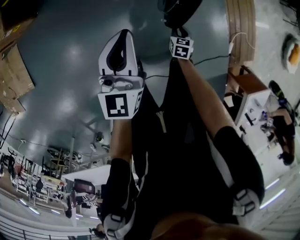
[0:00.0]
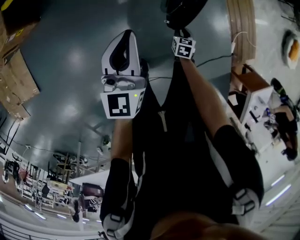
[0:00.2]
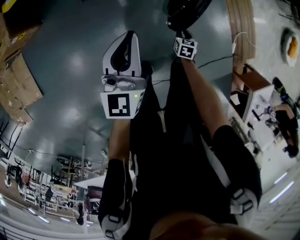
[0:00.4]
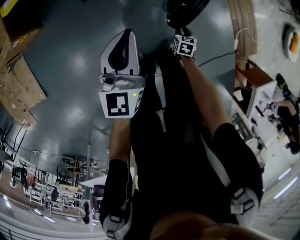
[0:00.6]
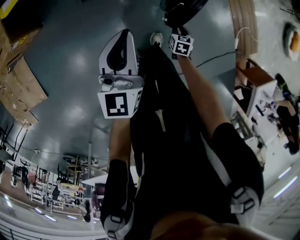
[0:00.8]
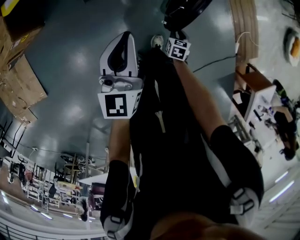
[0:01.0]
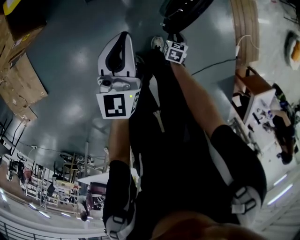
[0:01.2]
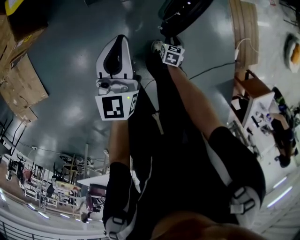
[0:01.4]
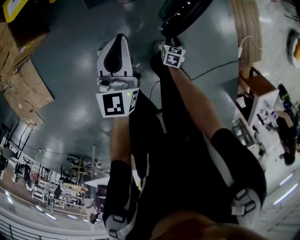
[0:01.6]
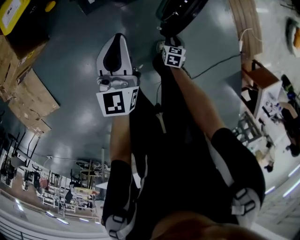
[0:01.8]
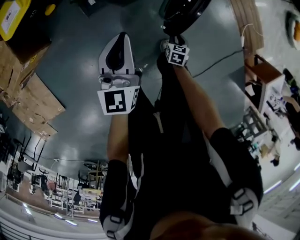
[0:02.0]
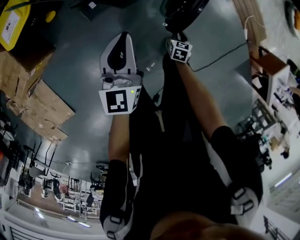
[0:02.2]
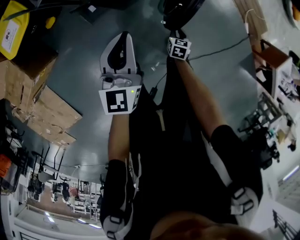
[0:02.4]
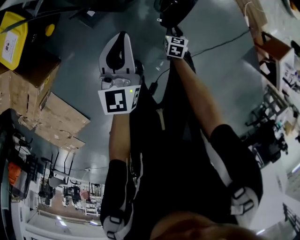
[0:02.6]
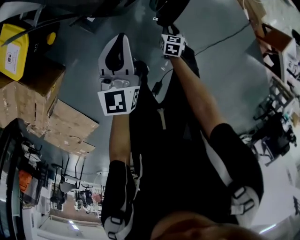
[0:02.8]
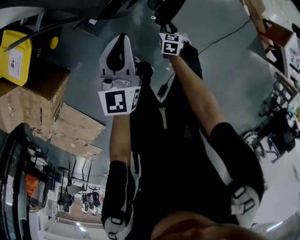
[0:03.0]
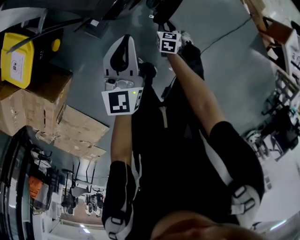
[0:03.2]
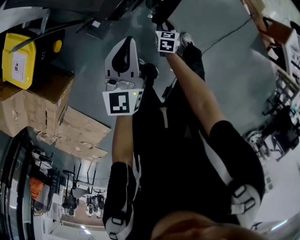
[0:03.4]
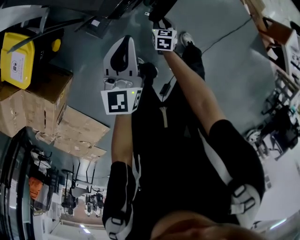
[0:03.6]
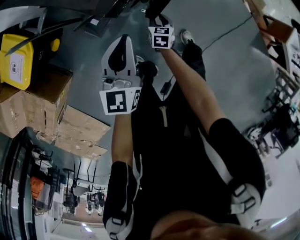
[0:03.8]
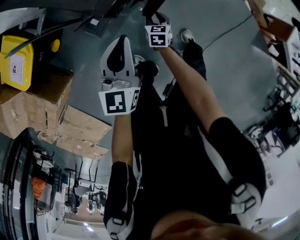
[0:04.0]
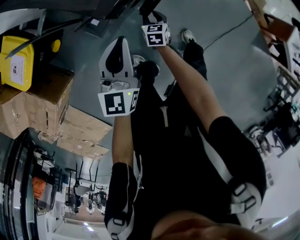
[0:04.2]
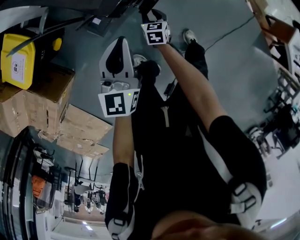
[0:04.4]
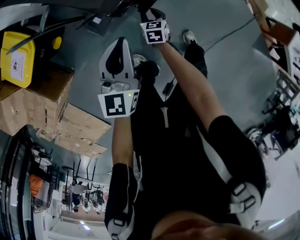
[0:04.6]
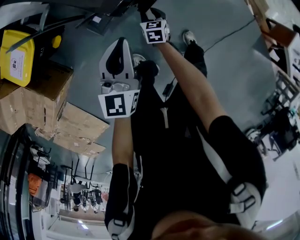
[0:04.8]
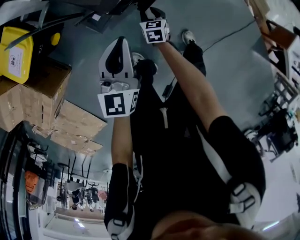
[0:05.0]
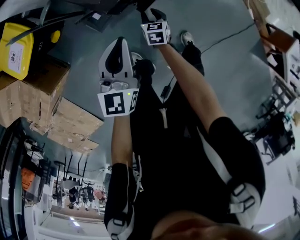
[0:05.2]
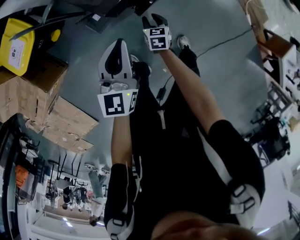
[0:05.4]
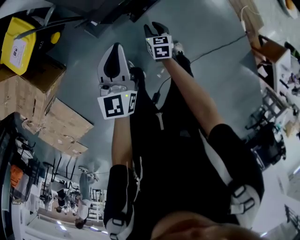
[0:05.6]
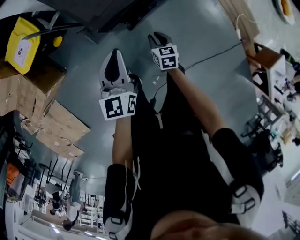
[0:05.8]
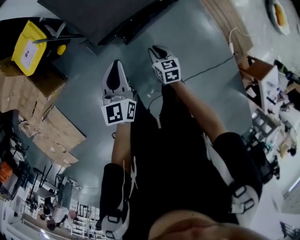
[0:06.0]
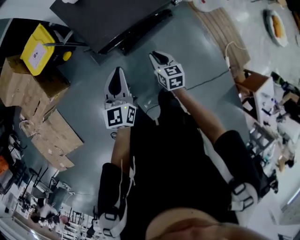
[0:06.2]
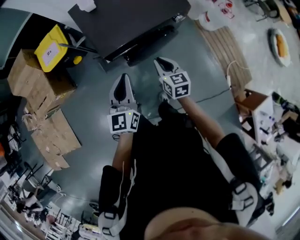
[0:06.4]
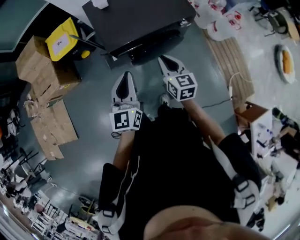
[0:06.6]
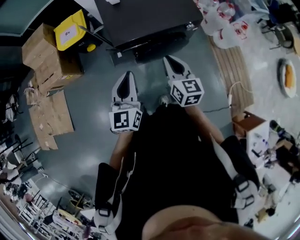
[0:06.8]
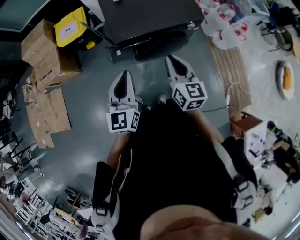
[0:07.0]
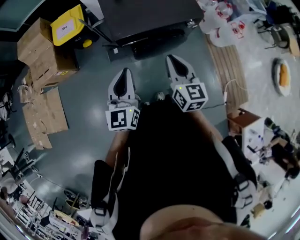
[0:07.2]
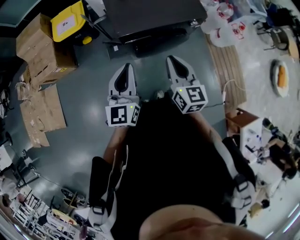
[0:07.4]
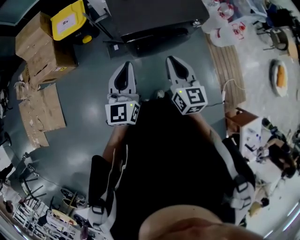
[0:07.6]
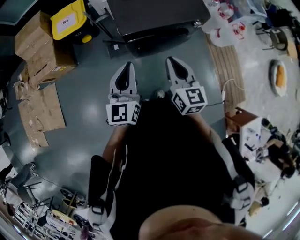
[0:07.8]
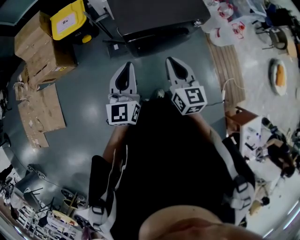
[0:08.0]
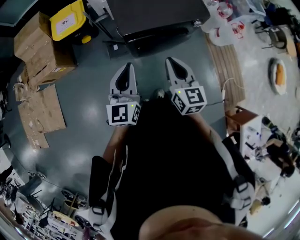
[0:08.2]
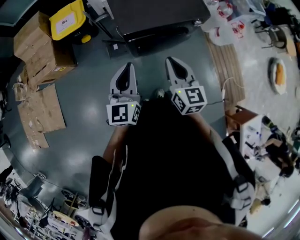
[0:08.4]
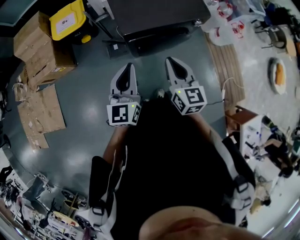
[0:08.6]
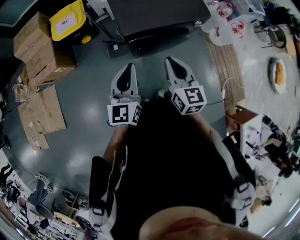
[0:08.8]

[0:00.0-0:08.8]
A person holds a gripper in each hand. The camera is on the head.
0:00.0 to 0:01.4: The right gripper moves to the left, about 10 cm, while the left gripper is displaced to the left and forward by some 10 cm.
0:01.4 to 0:03.0: The right gripper ends up approximately 20 cm from where it was, and rotates about 30 degrees. Meanwhile the left gripper changes place by roughly 15 cm, and turns by some 30 degrees.
0:03.0 to 0:04.4: The right gripper moves to the left, about 10 cm.
0:04.4 to 0:05.8: The left gripper heads upward, covering approximately 5 cm, while the right gripper moves upward and to the right, approximately 15 cm.
0:05.8 to 0:07.4: The left gripper goes roughly 25 cm upward and backward, and swivels roughly 20 degrees. Meanwhile the right gripper shifts roughly 40 cm upward, and tips its fingers upward by some 30 degrees.
0:07.4 to 0:08.8: The right gripper heads to the left, covering roughly 5 cm.

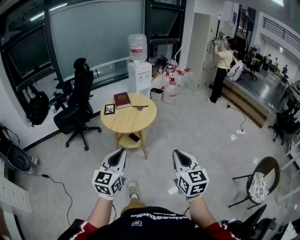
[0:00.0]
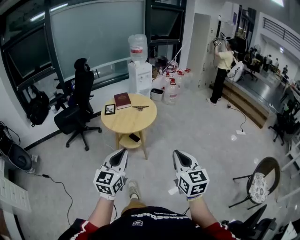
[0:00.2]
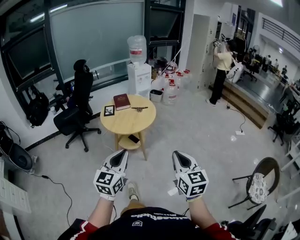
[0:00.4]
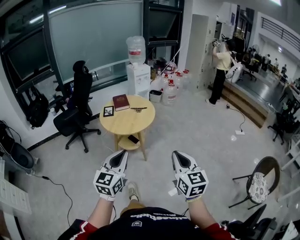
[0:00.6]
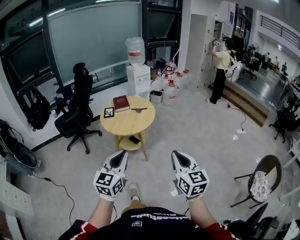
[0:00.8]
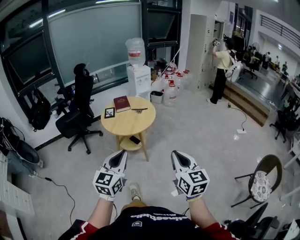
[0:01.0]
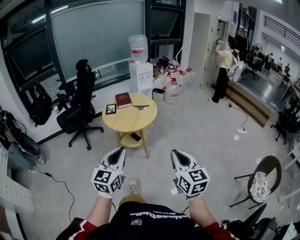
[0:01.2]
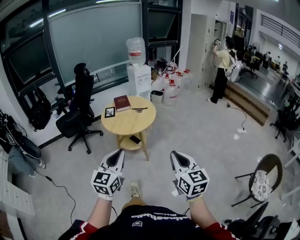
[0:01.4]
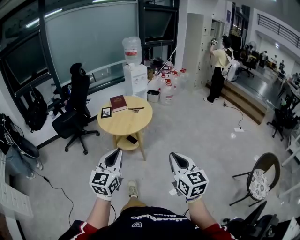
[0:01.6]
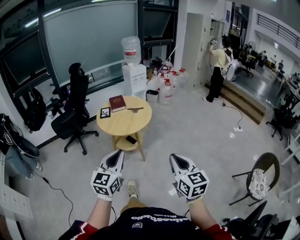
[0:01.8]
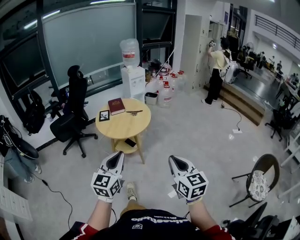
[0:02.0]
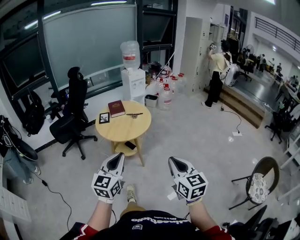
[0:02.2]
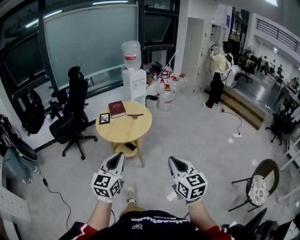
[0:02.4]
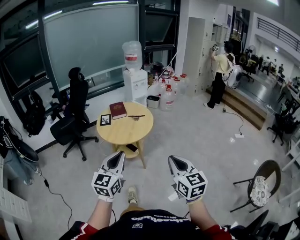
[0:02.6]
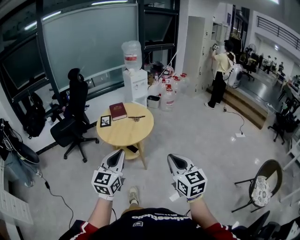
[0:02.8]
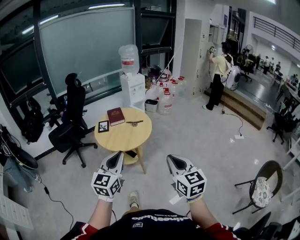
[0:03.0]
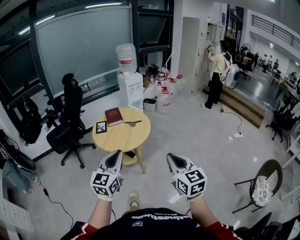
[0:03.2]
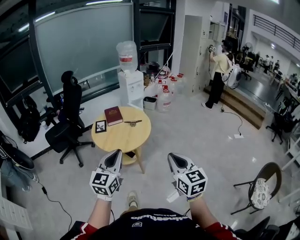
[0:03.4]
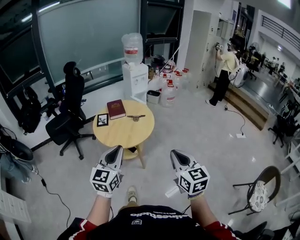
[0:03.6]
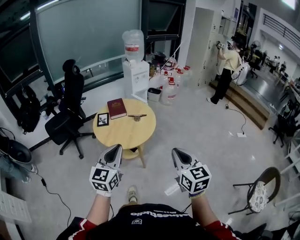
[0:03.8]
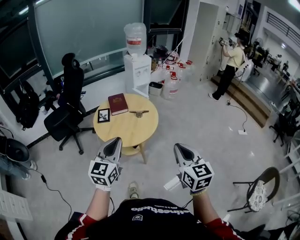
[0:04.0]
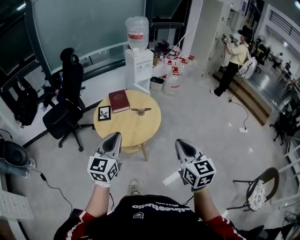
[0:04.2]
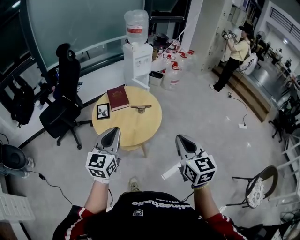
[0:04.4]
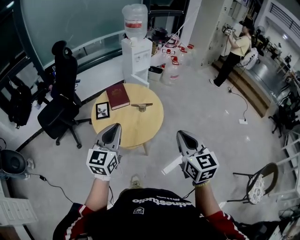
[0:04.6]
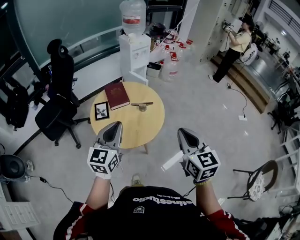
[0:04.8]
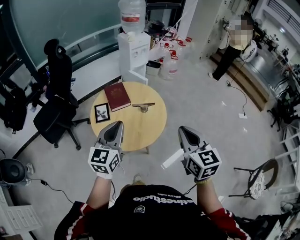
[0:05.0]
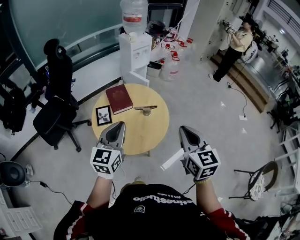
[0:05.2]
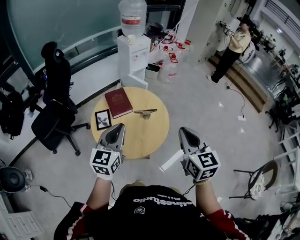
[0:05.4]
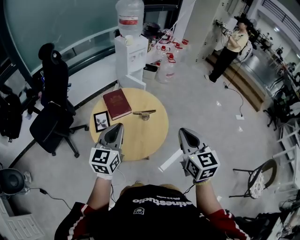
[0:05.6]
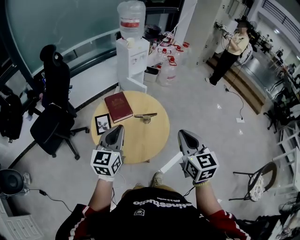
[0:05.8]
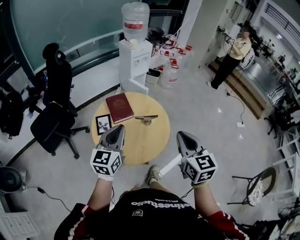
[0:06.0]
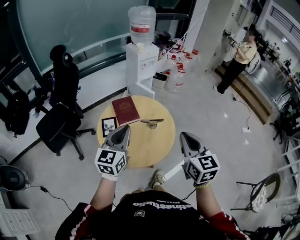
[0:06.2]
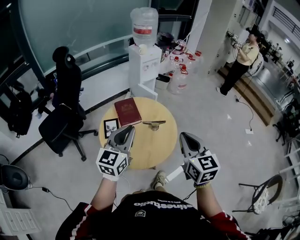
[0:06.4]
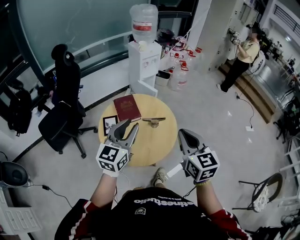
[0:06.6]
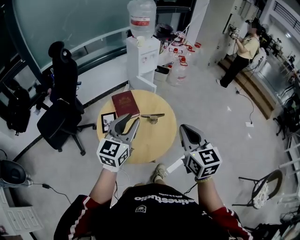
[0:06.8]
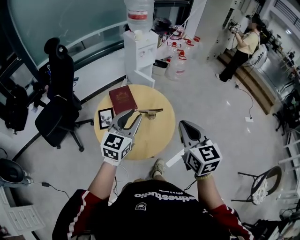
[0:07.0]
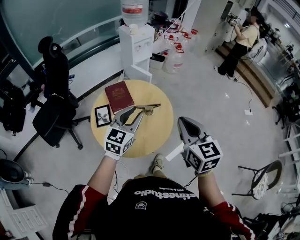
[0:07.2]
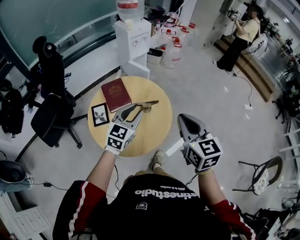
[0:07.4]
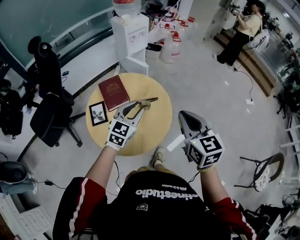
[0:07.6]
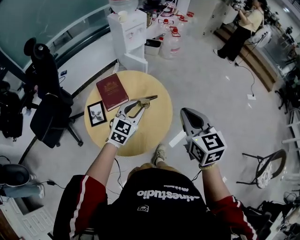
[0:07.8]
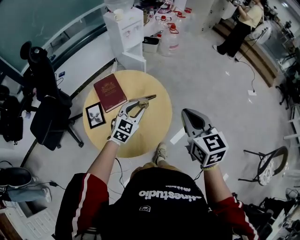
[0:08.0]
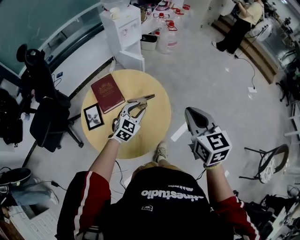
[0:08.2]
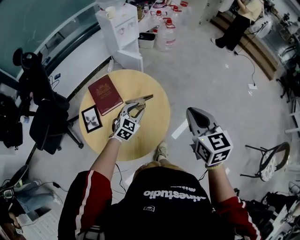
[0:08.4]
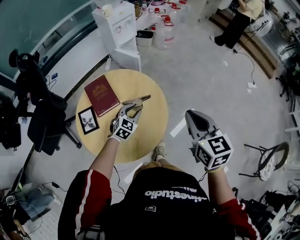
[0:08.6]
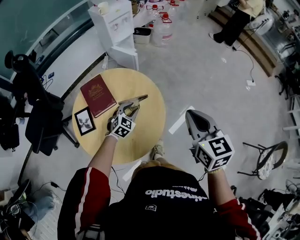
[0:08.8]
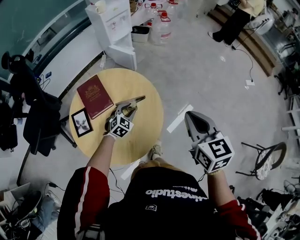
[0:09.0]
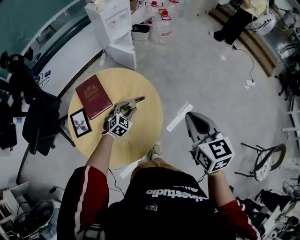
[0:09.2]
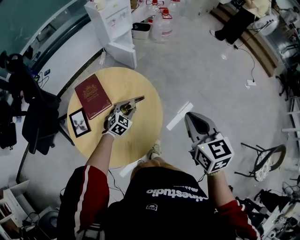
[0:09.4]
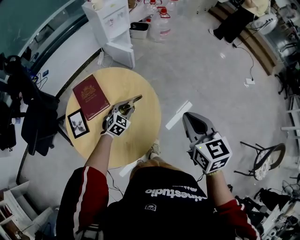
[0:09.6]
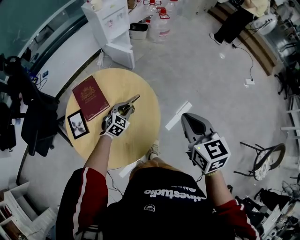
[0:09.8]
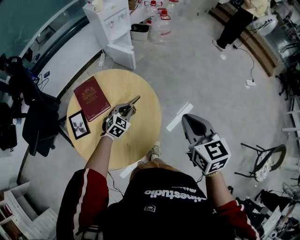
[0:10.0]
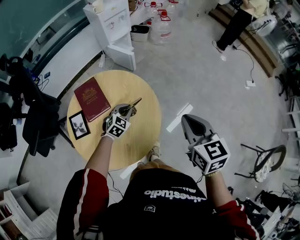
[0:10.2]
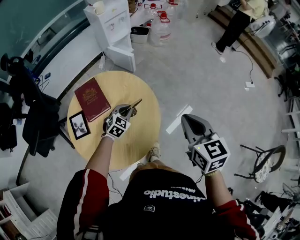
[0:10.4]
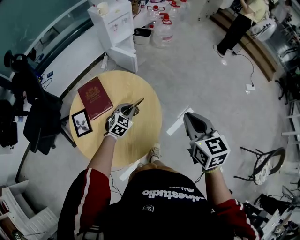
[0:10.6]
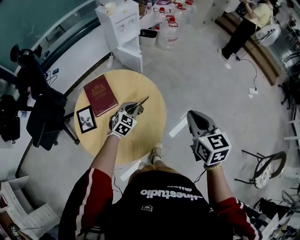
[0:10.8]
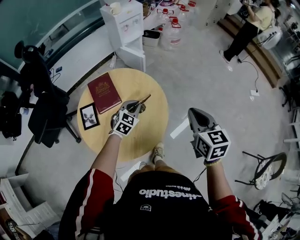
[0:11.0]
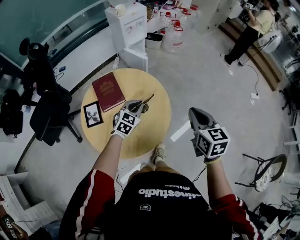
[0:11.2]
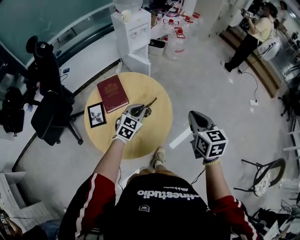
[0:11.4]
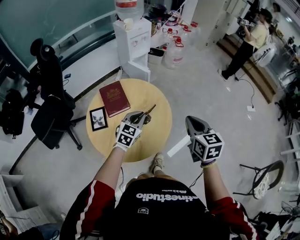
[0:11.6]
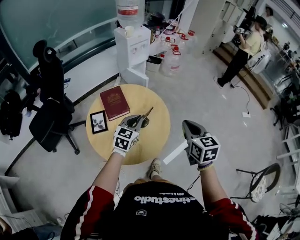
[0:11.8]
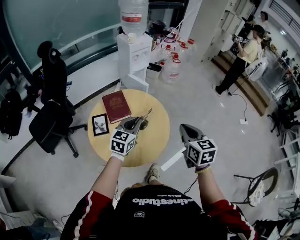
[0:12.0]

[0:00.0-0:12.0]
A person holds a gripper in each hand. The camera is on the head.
0:00.0 to 0:01.6: The grippers make only small movements.
0:01.6 to 0:03.0: Both grippers move forward, some 10 cm.
0:03.0 to 0:04.4: Both grippers travel together forward, roughly 25 cm.
0:04.4 to 0:06.0: Both grippers move forward and to the left, some 20 cm.
0:06.0 to 0:07.6: The right gripper shifts about 10 cm forward and downward. The left gripper goes about 20 cm forward, to the right and downward, turns by roughly 30 degrees, and opens up.
0:07.6 to 0:09.0: The left gripper heads downward and forward, covering roughly 30 cm, and rotates approximately 30 degrees. Meanwhile the right gripper goes roughly 15 cm forward, to the right and downward.
0:09.0 to 0:10.4: The left gripper closes its fingers.
0:10.4 to 0:12.0: The left gripper heads upward and backward, covering roughly 30 cm, and turns by approximately 40 degrees. Meanwhile the right gripper goes roughly 10 cm backward and to the left.

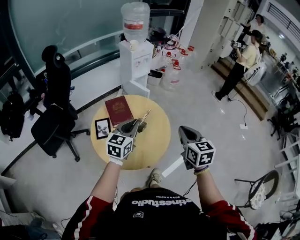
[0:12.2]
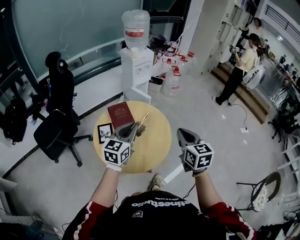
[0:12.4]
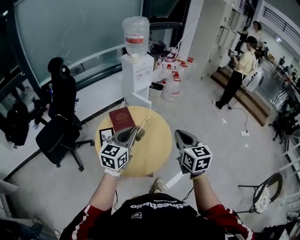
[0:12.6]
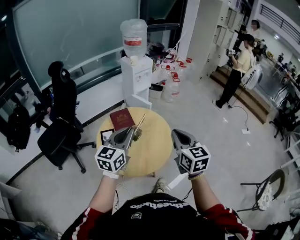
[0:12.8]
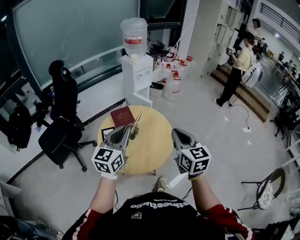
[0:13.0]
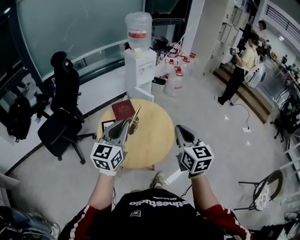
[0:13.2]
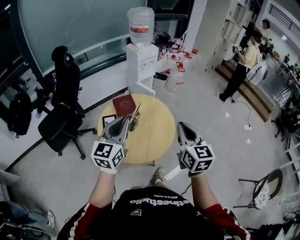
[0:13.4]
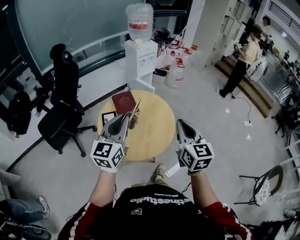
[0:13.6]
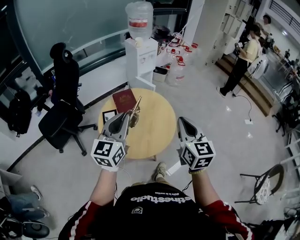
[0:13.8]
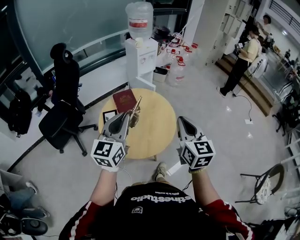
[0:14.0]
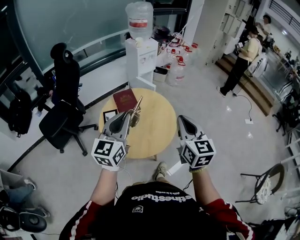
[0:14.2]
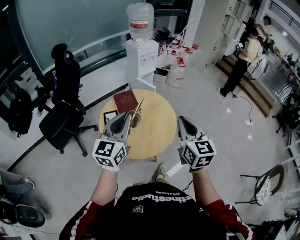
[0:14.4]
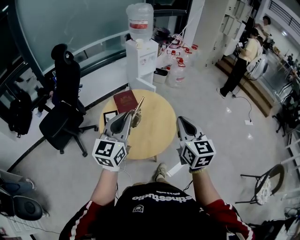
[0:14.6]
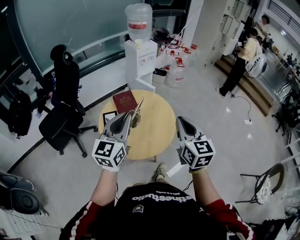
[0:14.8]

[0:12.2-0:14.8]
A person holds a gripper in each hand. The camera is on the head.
0:12.2 to 0:13.4: The right gripper heads backward and upward, covering approximately 10 cm. Meanwhile the left gripper heads backward, upward and to the left, covering some 15 cm.
0:13.4 to 0:14.8: There are only small adjustments of the grippers.
